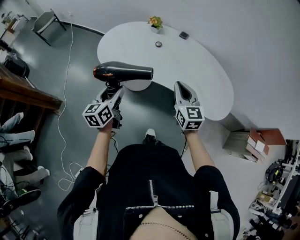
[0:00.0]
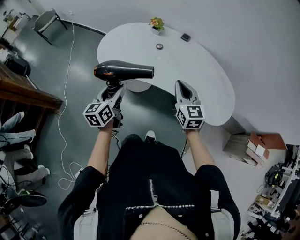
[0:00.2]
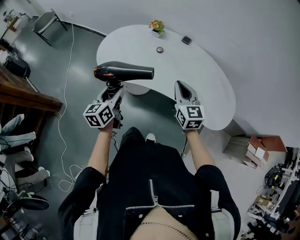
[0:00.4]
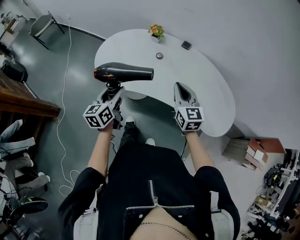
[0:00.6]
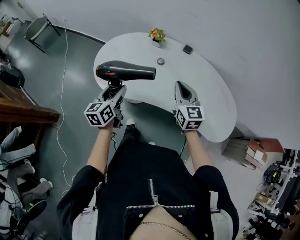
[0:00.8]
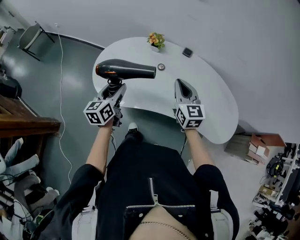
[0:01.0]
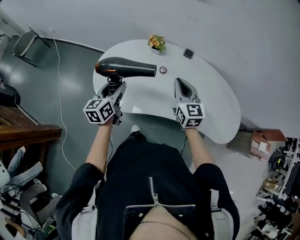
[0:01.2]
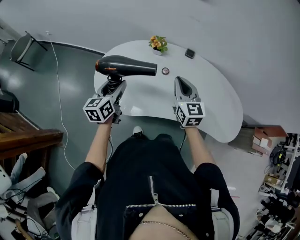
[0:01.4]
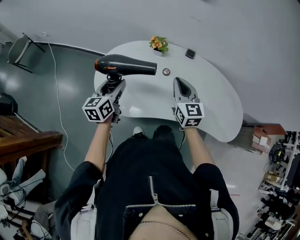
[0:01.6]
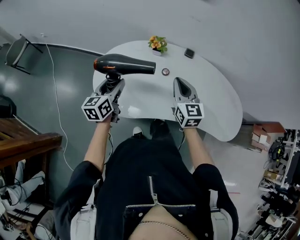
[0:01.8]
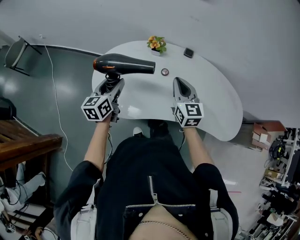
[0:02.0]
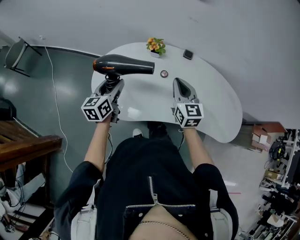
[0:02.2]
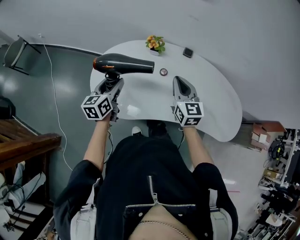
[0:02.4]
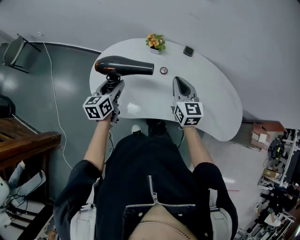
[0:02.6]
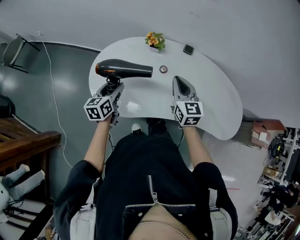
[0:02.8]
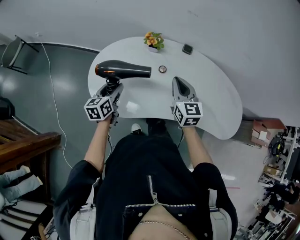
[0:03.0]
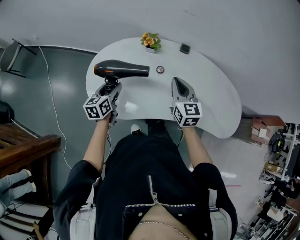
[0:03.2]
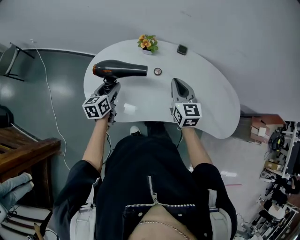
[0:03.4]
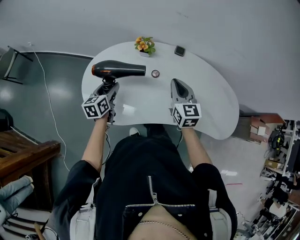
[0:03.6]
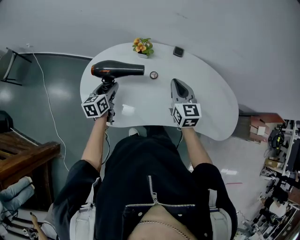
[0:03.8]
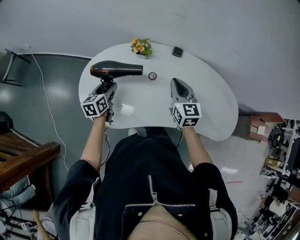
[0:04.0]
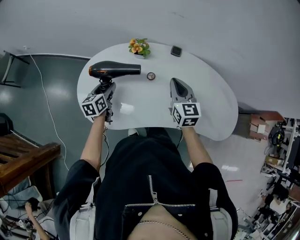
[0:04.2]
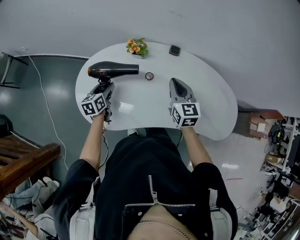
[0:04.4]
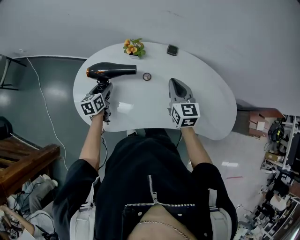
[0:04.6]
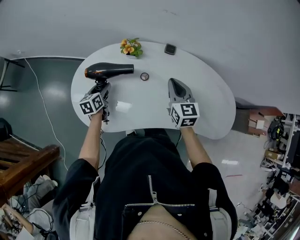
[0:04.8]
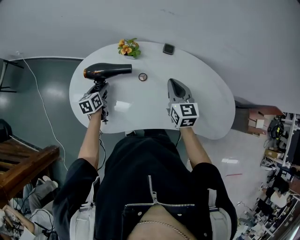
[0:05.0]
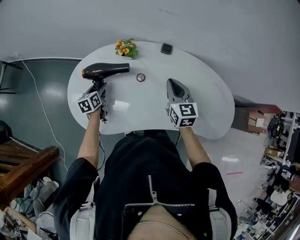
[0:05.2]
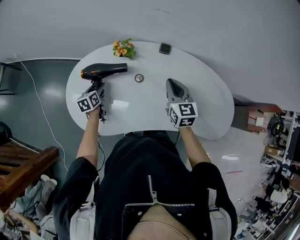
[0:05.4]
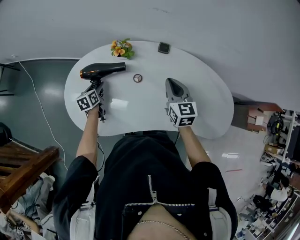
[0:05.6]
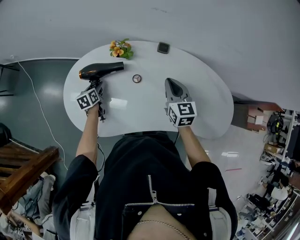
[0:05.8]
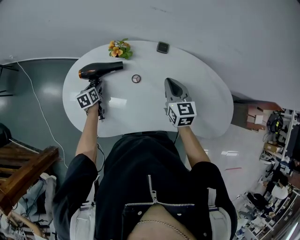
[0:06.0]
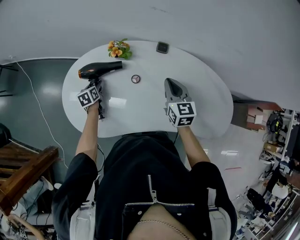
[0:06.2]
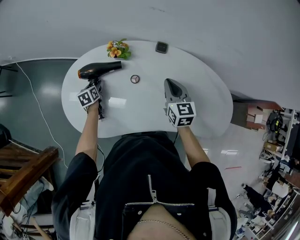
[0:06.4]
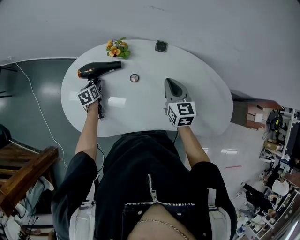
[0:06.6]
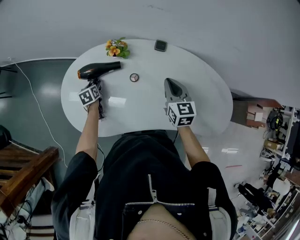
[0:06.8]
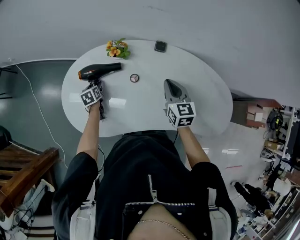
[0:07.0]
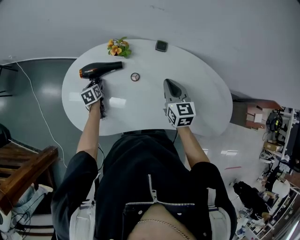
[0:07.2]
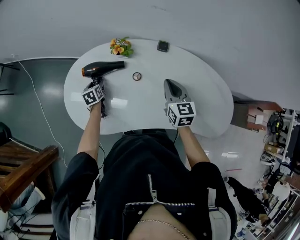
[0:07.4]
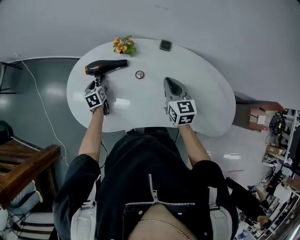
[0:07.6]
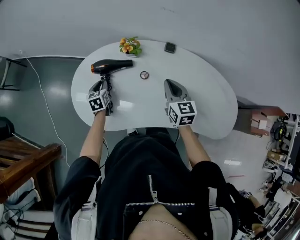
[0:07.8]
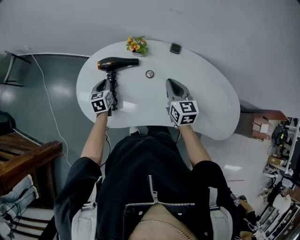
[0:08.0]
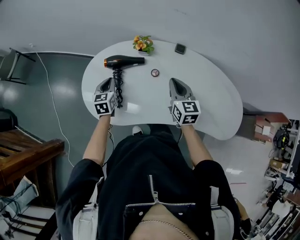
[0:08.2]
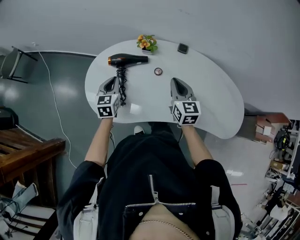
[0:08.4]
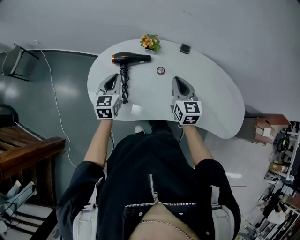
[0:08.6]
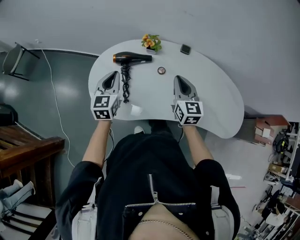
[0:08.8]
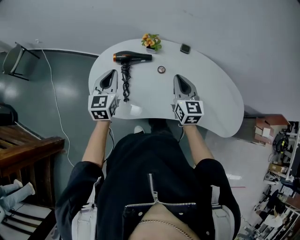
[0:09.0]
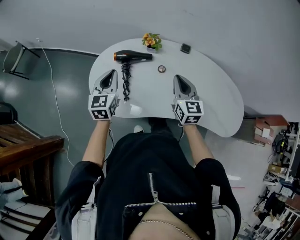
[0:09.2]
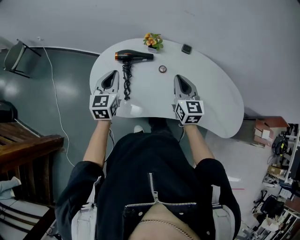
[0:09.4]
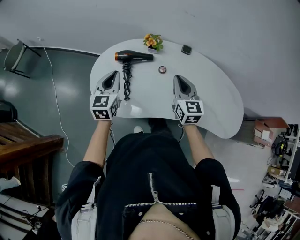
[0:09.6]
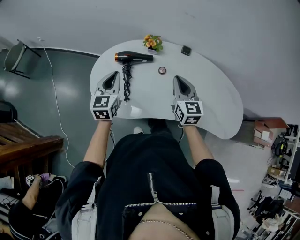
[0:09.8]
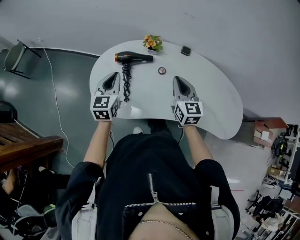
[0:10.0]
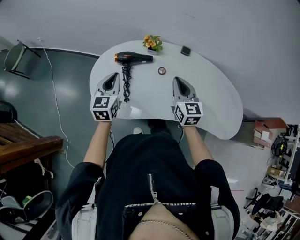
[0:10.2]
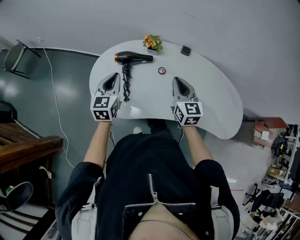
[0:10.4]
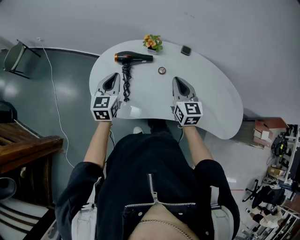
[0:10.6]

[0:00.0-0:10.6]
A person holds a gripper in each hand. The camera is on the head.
0.0 to 1.6 s: The right gripper is displaced forward and to the left by some 30 cm. Meanwhile the left gripper shifts roughly 35 cm forward.
1.6 to 3.0 s: The left gripper goes about 10 cm downward.
3.0 to 4.6 s: The left gripper travels forward and downward by about 10 cm; the right gripper is displaced to the right and forward by approximately 10 cm.
4.6 to 6.0 s: The left gripper heads downward and forward, covering approximately 10 cm. The right gripper changes place by approximately 5 cm.
6.0 to 7.6 s: The grippers make only small movements.
7.6 to 9.0 s: The right gripper is displaced to the left, upward and backward by roughly 10 cm; the left gripper is displaced upward and backward by approximately 25 cm, rotates some 30 degrees, and closes its fingers.
9.0 to 10.6 s: The grippers stay close to where they were, moving slightly.

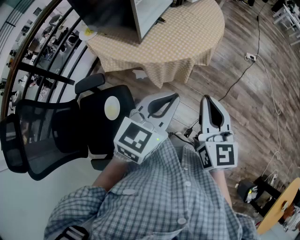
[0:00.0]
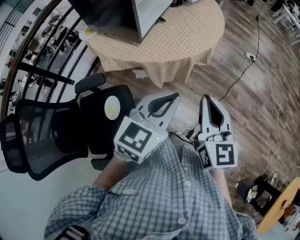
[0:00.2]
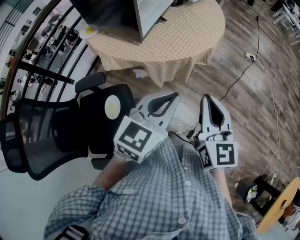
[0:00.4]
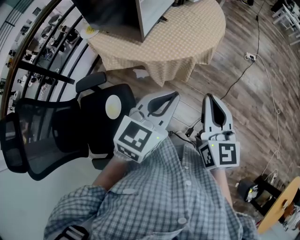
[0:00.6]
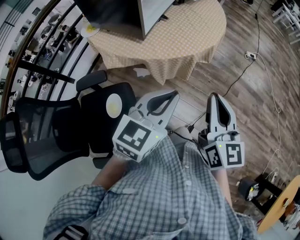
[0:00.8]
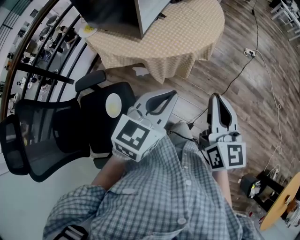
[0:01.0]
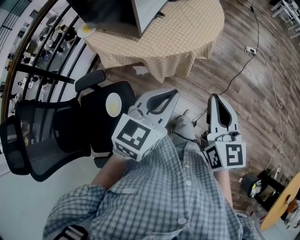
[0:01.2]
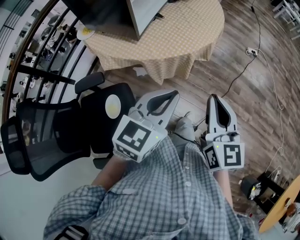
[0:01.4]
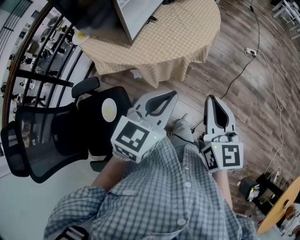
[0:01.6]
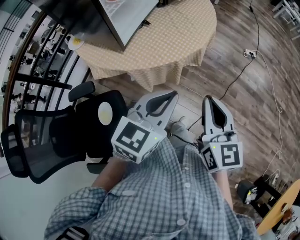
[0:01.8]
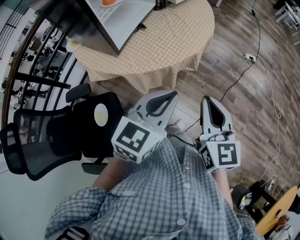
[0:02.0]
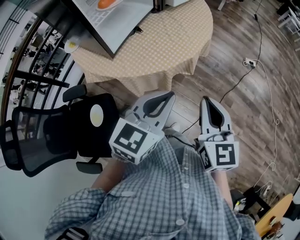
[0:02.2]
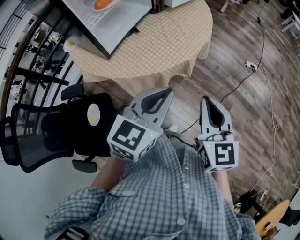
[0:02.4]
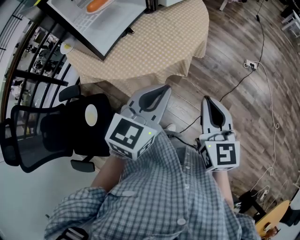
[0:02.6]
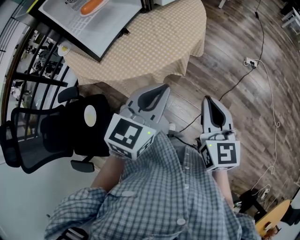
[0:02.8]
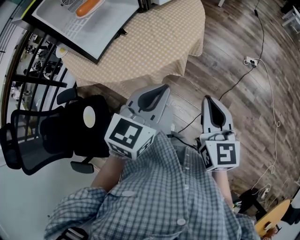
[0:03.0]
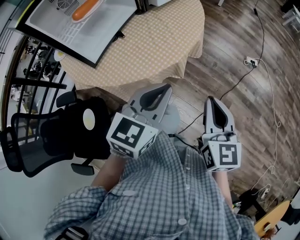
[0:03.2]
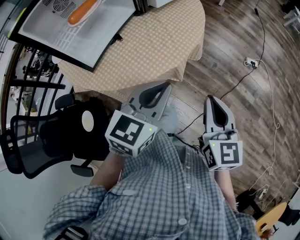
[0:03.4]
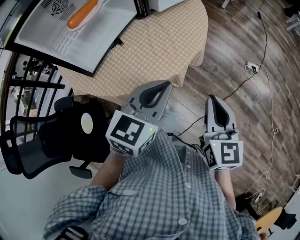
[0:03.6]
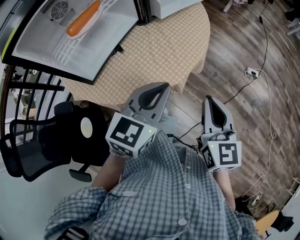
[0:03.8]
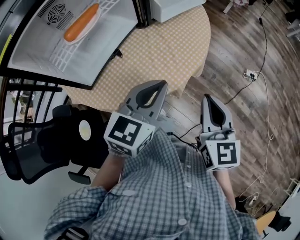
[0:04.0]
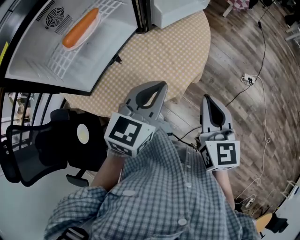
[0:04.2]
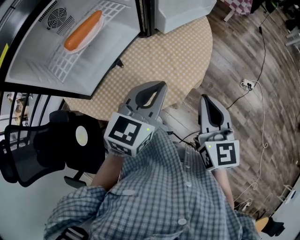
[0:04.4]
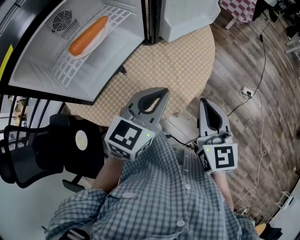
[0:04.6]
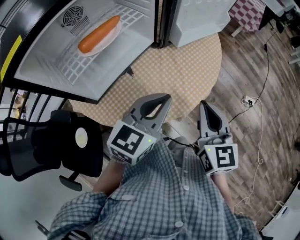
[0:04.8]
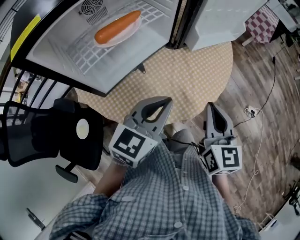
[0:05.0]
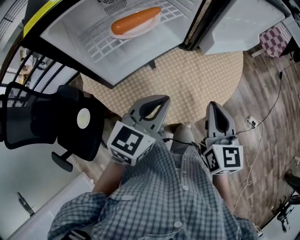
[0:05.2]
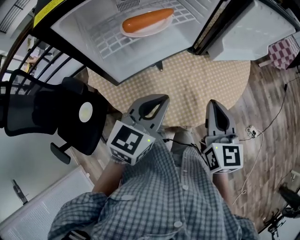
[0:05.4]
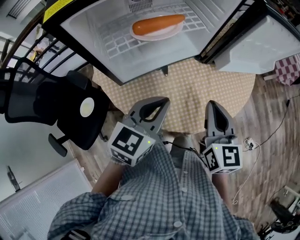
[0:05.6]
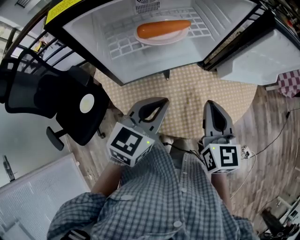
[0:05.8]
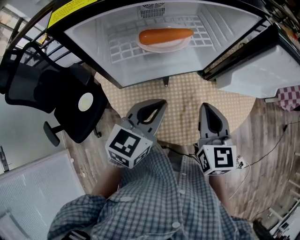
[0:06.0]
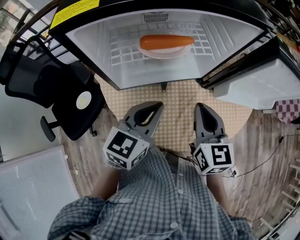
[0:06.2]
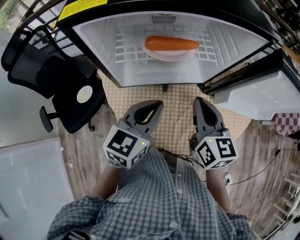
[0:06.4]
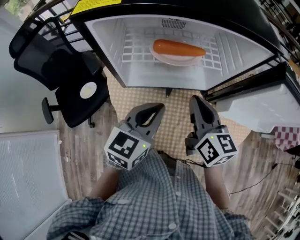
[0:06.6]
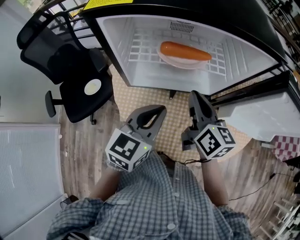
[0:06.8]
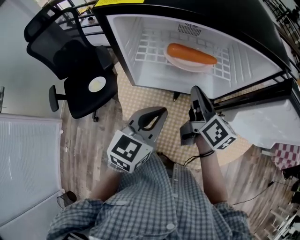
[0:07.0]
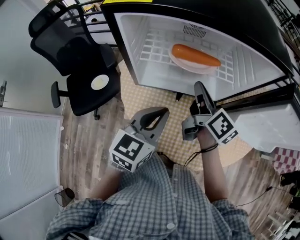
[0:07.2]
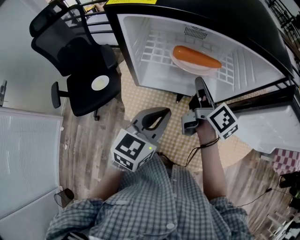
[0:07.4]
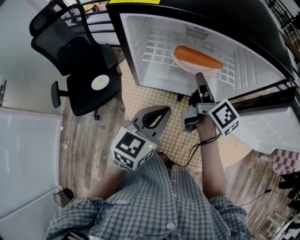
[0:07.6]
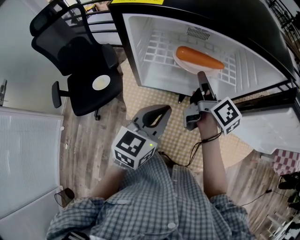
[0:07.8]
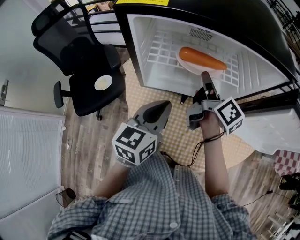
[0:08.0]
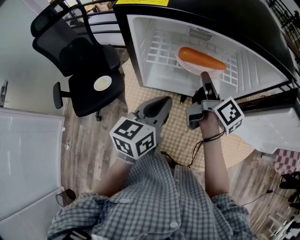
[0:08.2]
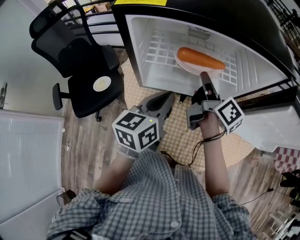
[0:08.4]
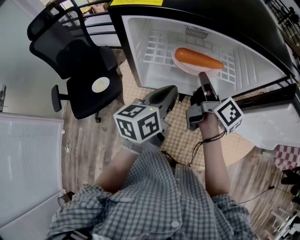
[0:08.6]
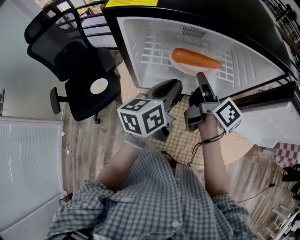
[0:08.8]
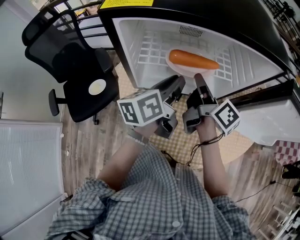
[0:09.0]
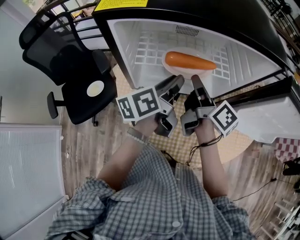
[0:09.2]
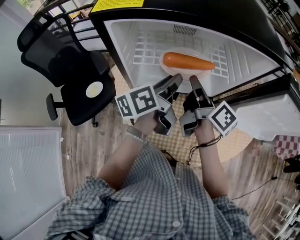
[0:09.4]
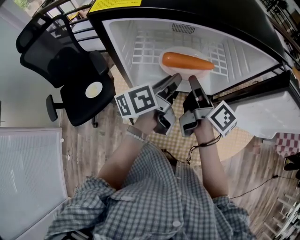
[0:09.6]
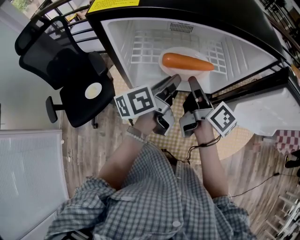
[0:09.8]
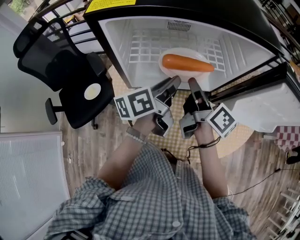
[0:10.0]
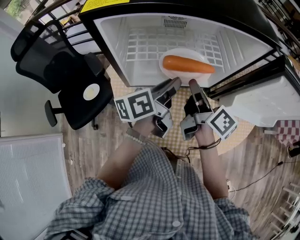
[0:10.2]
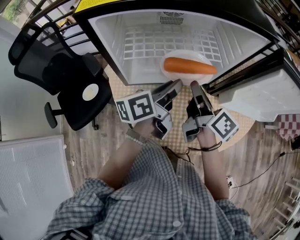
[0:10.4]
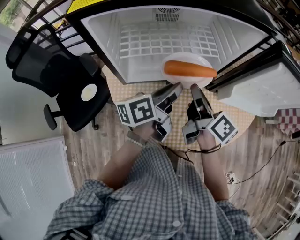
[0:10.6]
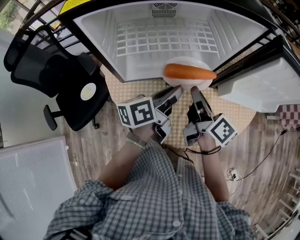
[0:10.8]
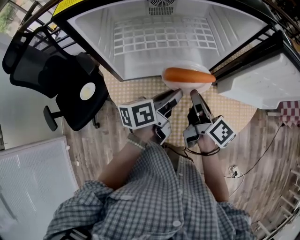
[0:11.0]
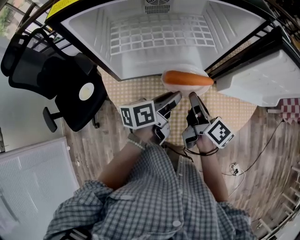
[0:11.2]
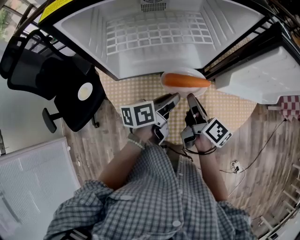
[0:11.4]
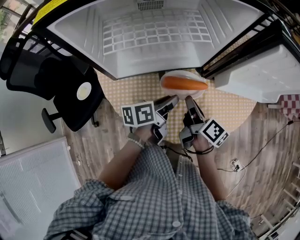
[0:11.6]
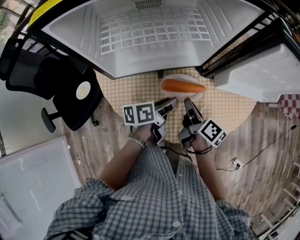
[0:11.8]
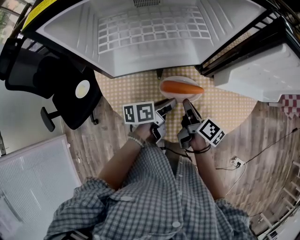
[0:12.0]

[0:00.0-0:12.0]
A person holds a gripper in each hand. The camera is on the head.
0.0 to 1.6 s: The right gripper shifts by some 5 cm.
1.6 to 3.0 s: The left gripper heads forward and to the right, covering approximately 20 cm; the right gripper goes roughly 20 cm to the right and forward.
3.0 to 4.4 s: The two grippers go some 20 cm forward.
4.4 to 6.0 s: The right gripper ends up some 20 cm from where it was, and swivels about 40 degrees, while the left gripper shifts by approximately 15 cm, and rotates approximately 40 degrees.
6.0 to 7.6 s: The left gripper changes its angle by roughly 20 degrees. The right gripper goes approximately 15 cm forward, and rotates around the line of its fingers by about 50 degrees, clockwise from behind.
7.6 to 9.0 s: The left gripper heads forward, covering roughly 10 cm, and rotates roughly 40 degrees.
9.0 to 10.4 s: The left gripper changes place by roughly 5 cm, while the right gripper goes approximately 5 cm backward.
10.4 to 12.0 s: The right gripper shifts roughly 20 cm downward and backward, and swivels some 20 degrees. The left gripper heads downward, covering some 15 cm, and turns by approximately 30 degrees.

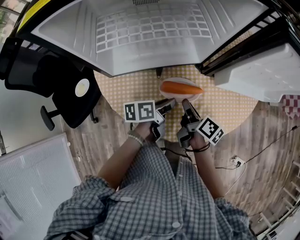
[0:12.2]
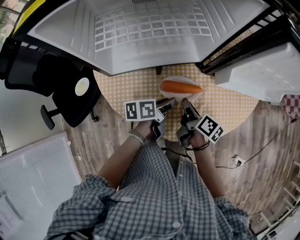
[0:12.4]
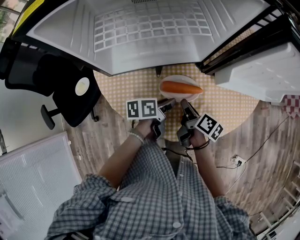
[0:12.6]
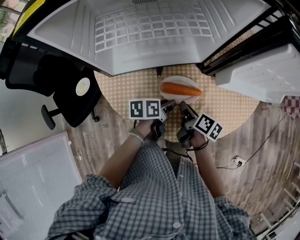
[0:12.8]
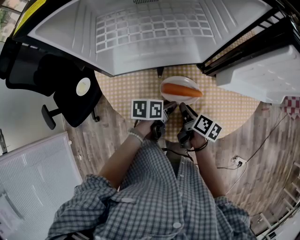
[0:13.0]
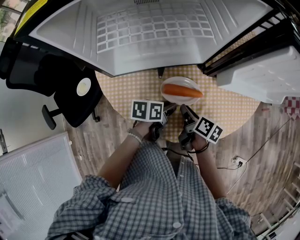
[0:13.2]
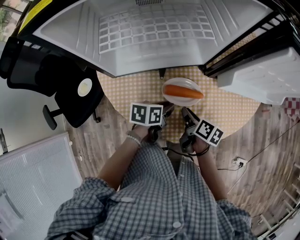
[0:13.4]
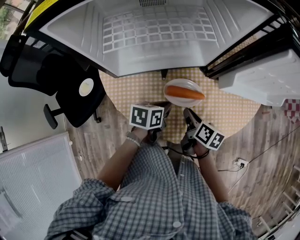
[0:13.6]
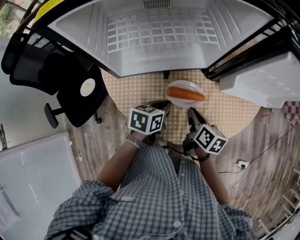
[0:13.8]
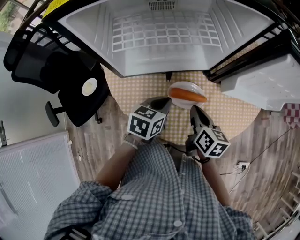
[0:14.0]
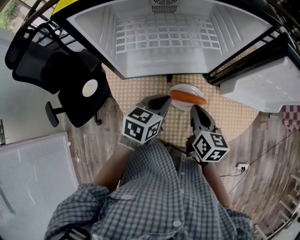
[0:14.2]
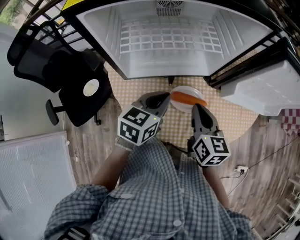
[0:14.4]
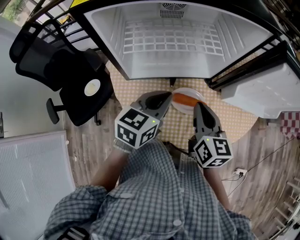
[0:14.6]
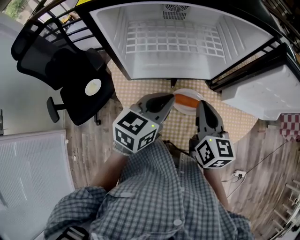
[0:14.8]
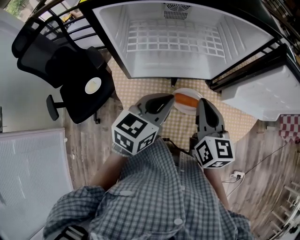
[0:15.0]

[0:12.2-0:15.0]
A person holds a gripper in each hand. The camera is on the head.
12.2 to 13.6 s: The left gripper swivels some 30 degrees.
13.6 to 15.0 s: Both grippers travel together upward, approximately 20 cm. The right gripper rotates around the line of its fingers by approximately 40 degrees, counterclockwise from behind. Meanwhile the left gripper changes its angle by approximately 40 degrees.
